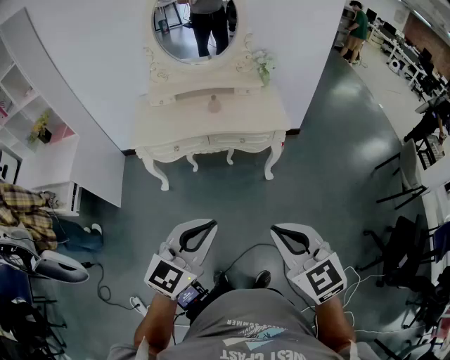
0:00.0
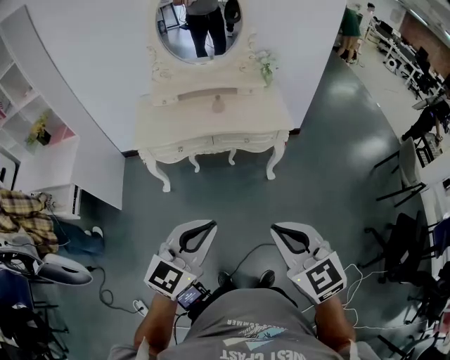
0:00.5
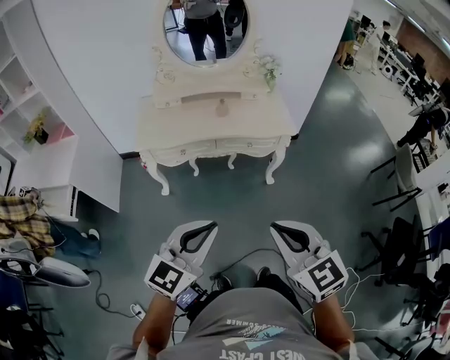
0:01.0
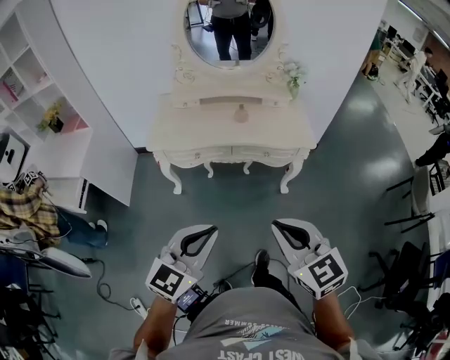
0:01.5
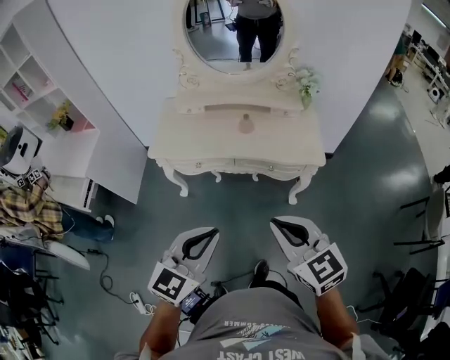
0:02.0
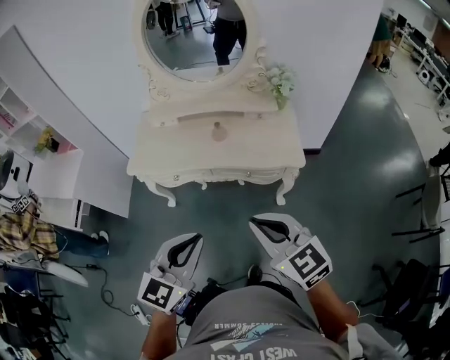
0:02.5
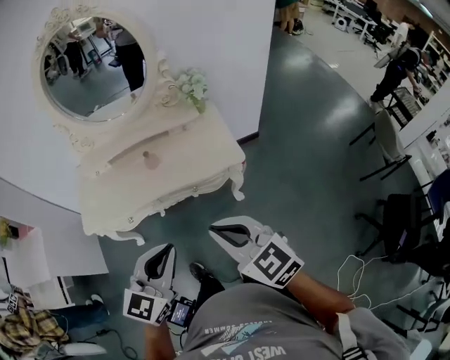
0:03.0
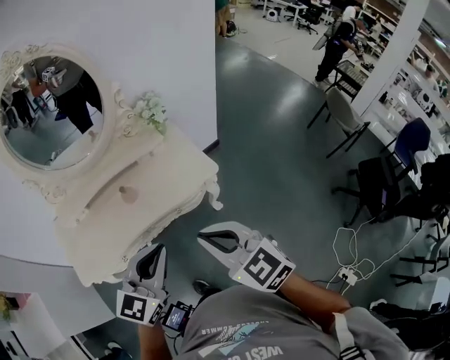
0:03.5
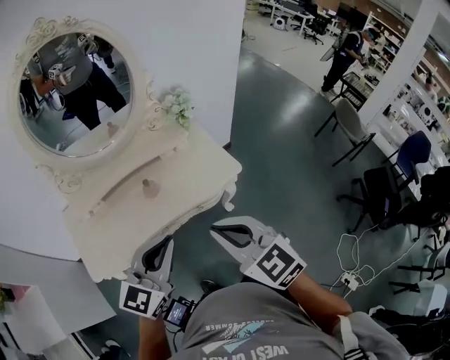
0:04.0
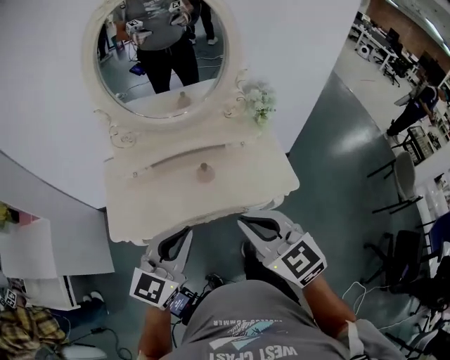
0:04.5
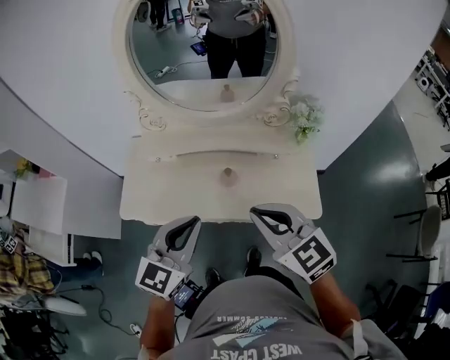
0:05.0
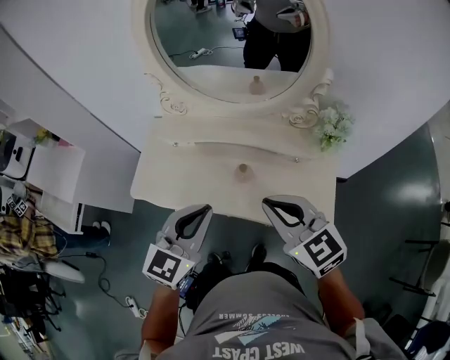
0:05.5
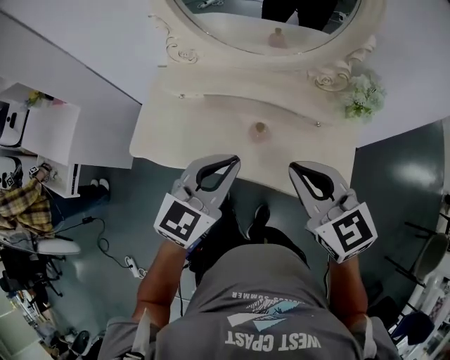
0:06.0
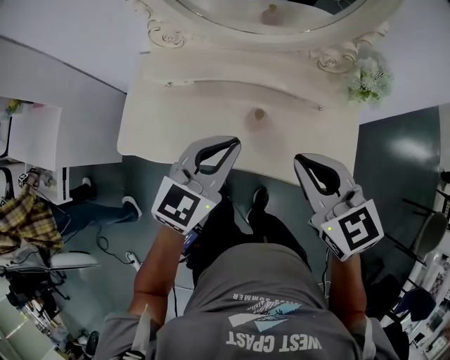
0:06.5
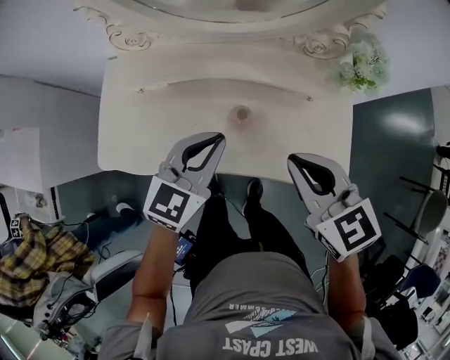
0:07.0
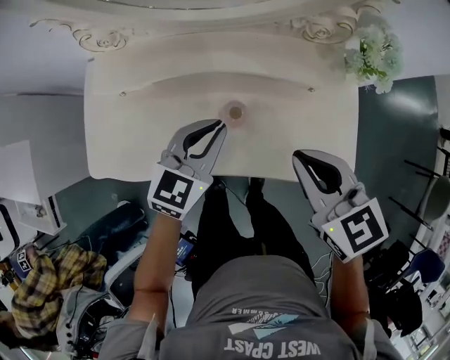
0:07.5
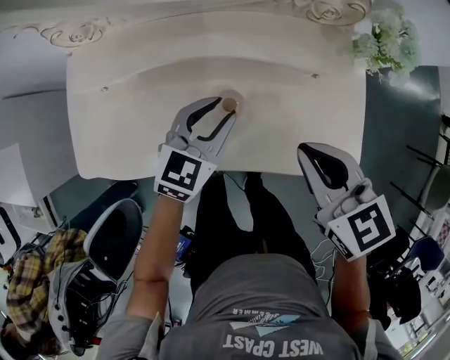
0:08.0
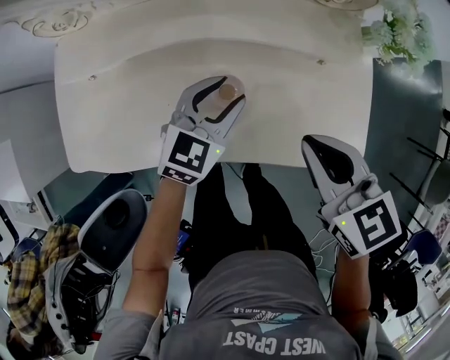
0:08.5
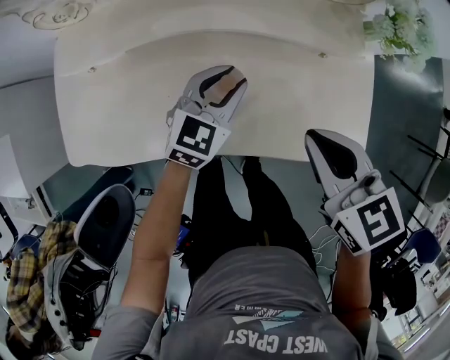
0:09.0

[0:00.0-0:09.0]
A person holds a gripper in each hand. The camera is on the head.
0:00.0 to 0:02.0: The grippers both shift forward by about 20 cm.
0:02.0 to 0:04.5: The left gripper changes place by some 30 cm; the right gripper moves about 30 cm.
0:04.5 to 0:07.0: Both grippers move forward and downward, about 25 cm.
0:07.0 to 0:09.0: The left gripper travels downward and forward by roughly 20 cm, and opens up, while the right gripper shifts about 10 cm downward.

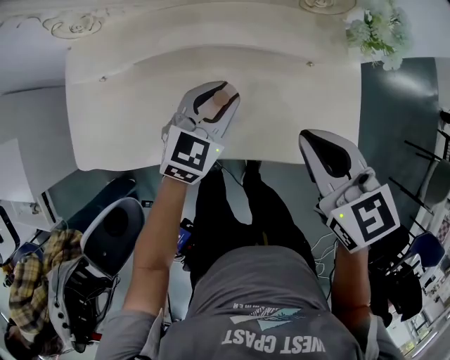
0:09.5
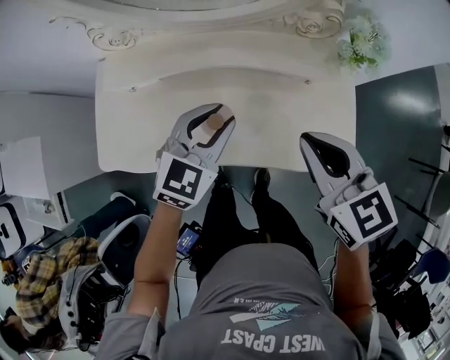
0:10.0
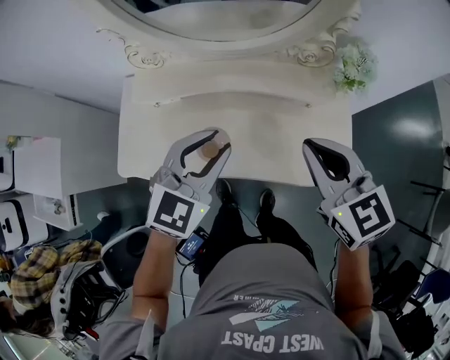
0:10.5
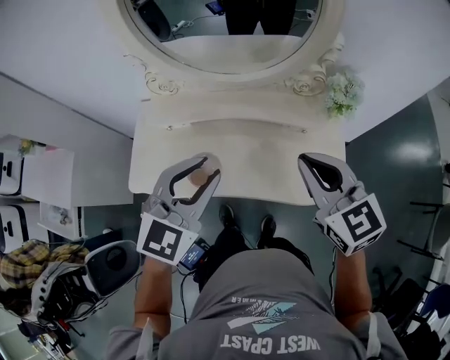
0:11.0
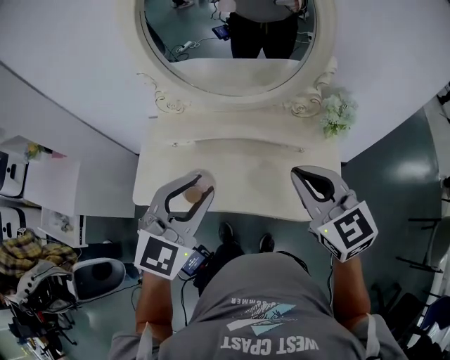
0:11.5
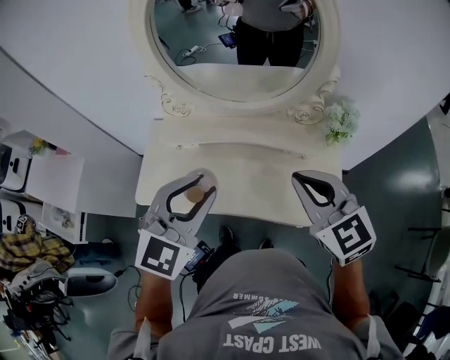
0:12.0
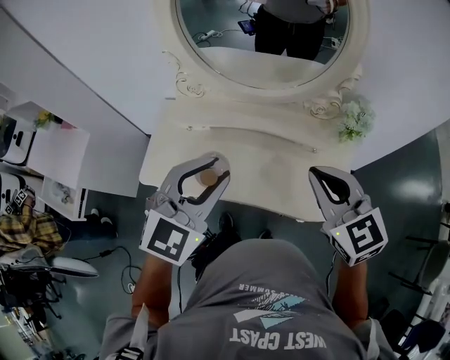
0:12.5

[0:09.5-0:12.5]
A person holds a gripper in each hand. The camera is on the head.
0:09.5 to 0:11.0: The right gripper travels upward by some 20 cm, and changes its angle by some 20 degrees; the left gripper shifts roughly 30 cm upward and backward.
0:11.0 to 0:12.5: The left gripper changes place by approximately 5 cm.

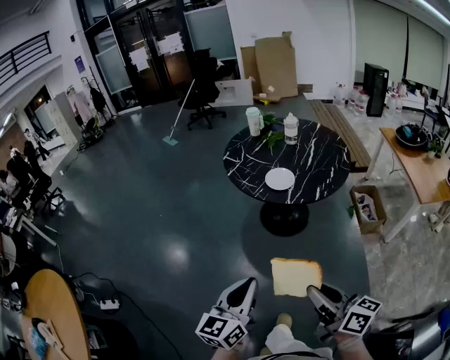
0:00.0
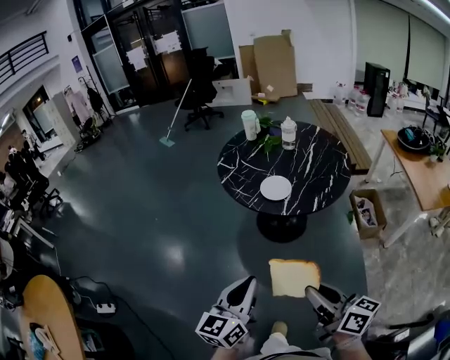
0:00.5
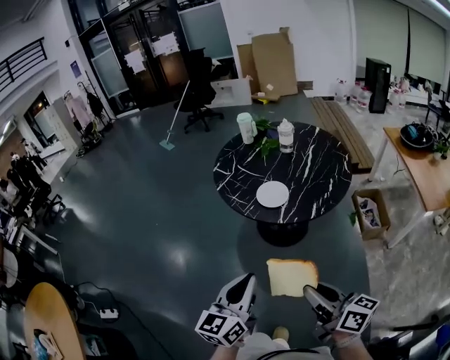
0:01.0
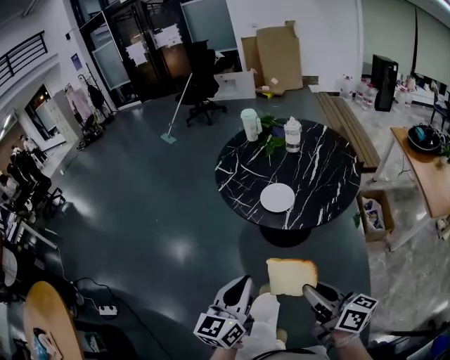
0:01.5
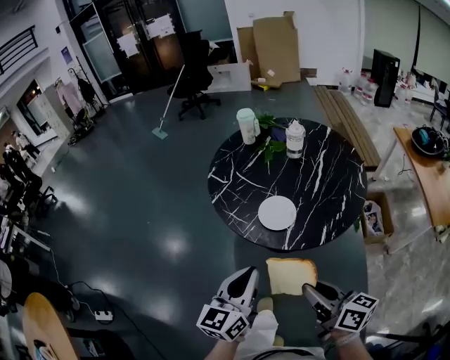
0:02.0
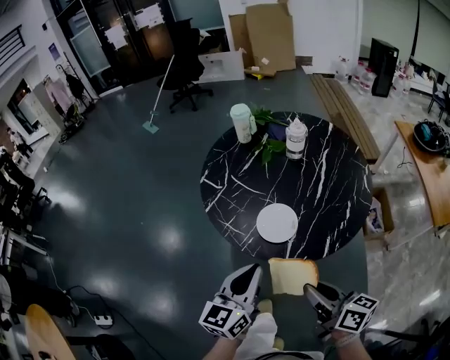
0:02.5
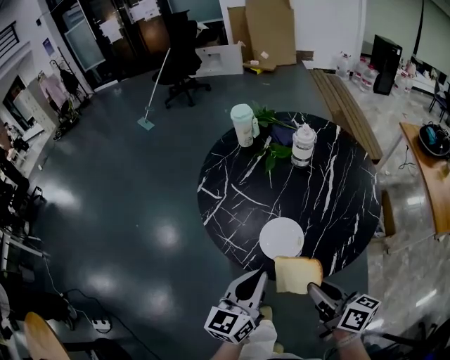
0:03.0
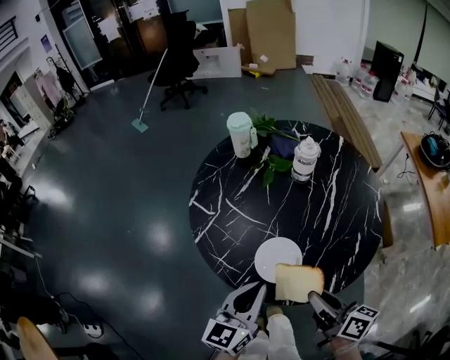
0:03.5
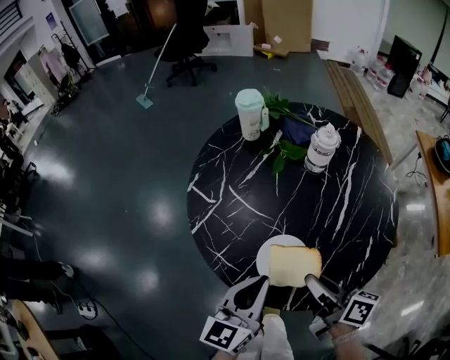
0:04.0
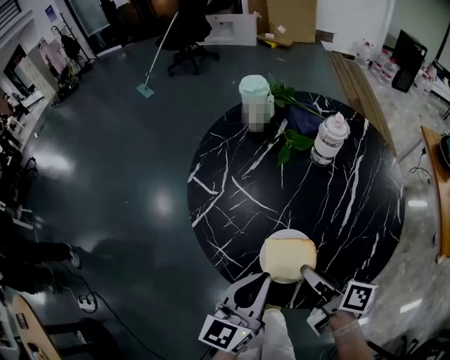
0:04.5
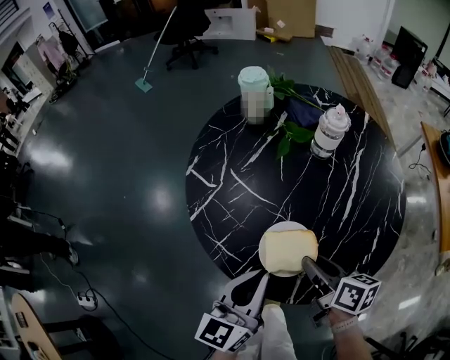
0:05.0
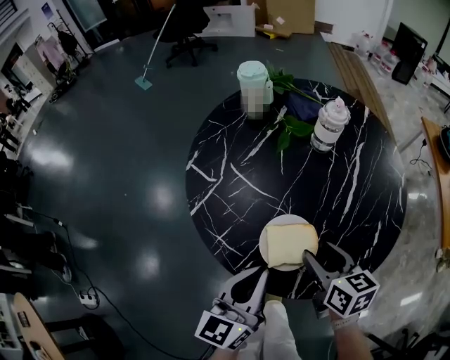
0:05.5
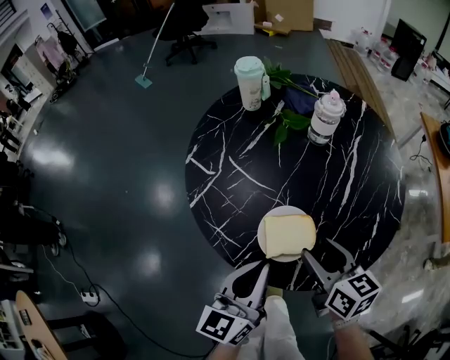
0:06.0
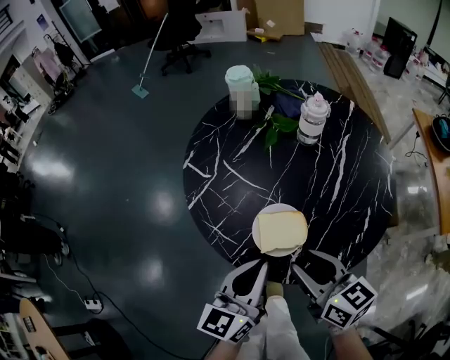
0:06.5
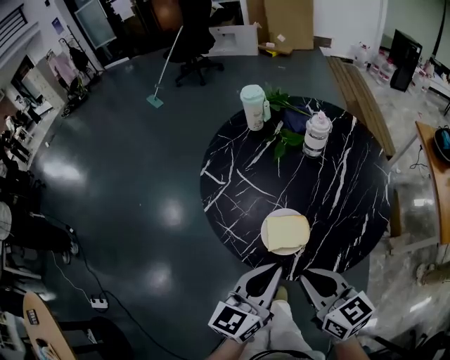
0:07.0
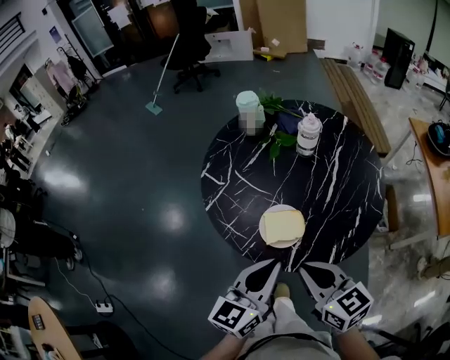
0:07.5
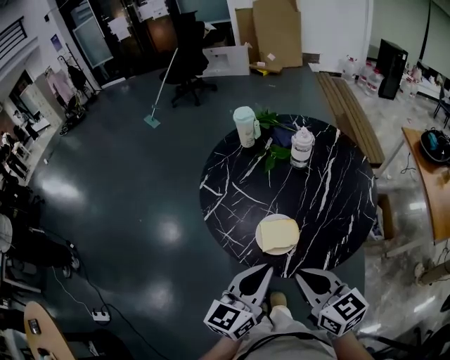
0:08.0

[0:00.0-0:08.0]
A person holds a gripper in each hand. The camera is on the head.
0:00.0 to 0:02.0: Both grippers move forward, roughly 30 cm.
0:02.0 to 0:04.0: The right gripper travels forward by roughly 25 cm, while the left gripper shifts about 25 cm forward and downward.
0:04.0 to 0:06.0: The right gripper swivels roughly 30 degrees, and opens.
0:06.0 to 0:08.0: The grippers both shift upward and backward by some 15 cm. The right gripper closes.

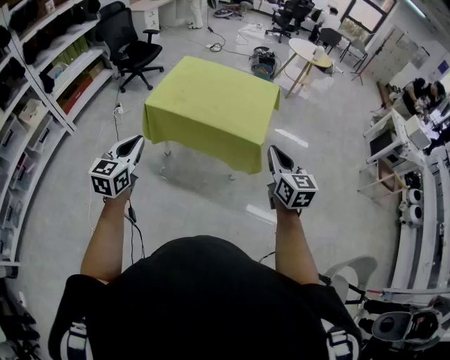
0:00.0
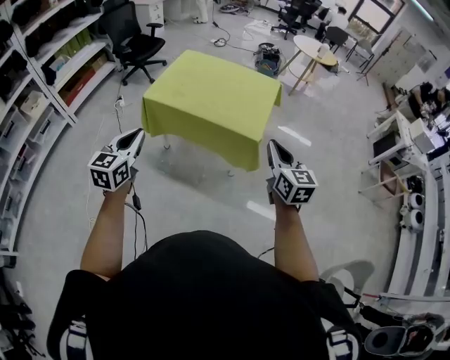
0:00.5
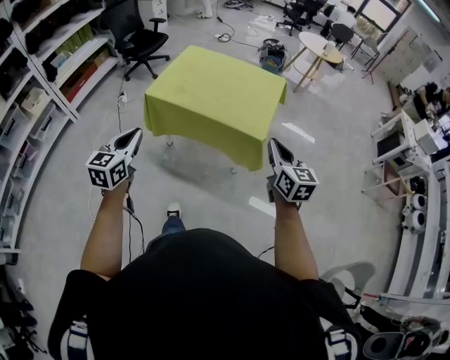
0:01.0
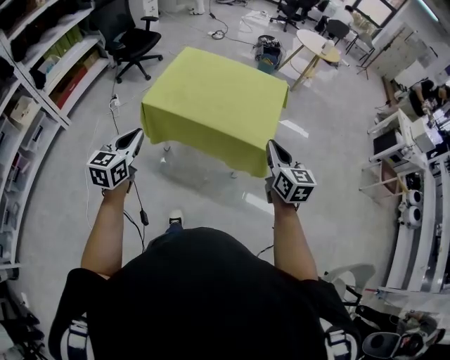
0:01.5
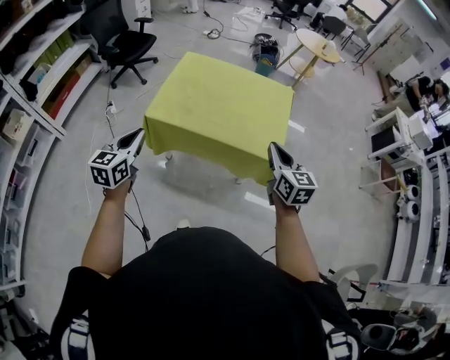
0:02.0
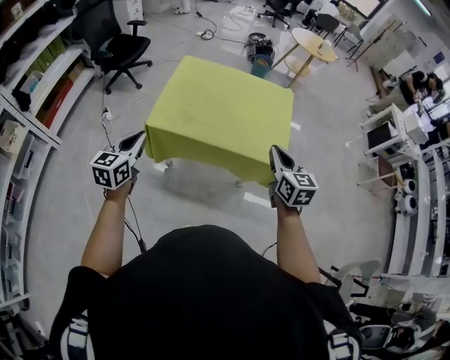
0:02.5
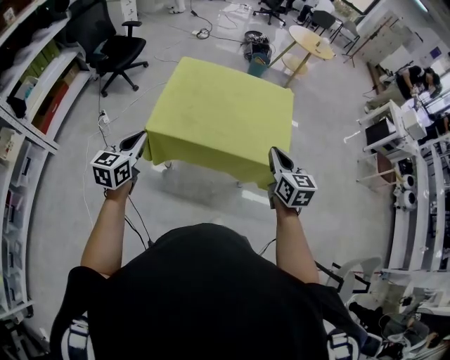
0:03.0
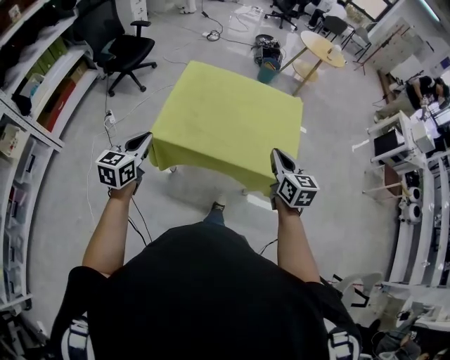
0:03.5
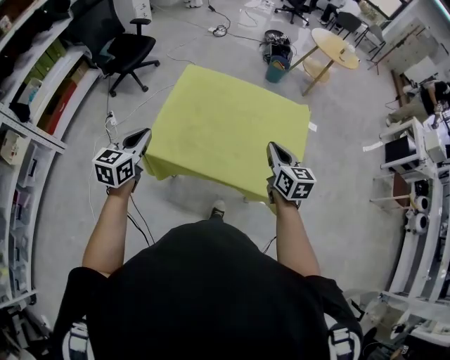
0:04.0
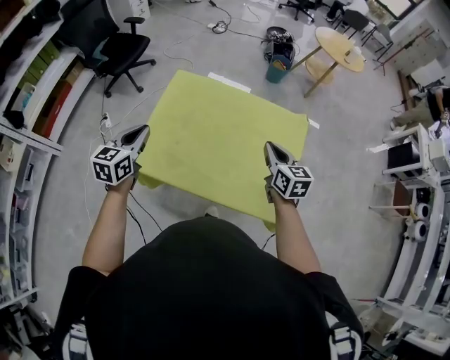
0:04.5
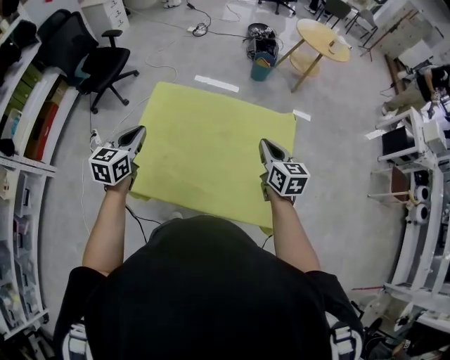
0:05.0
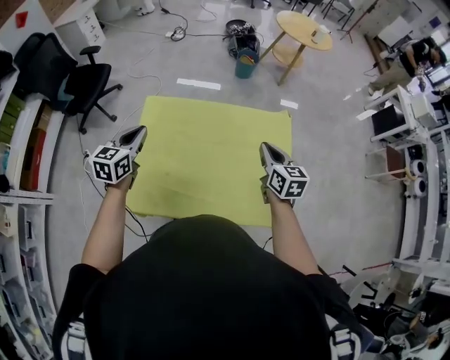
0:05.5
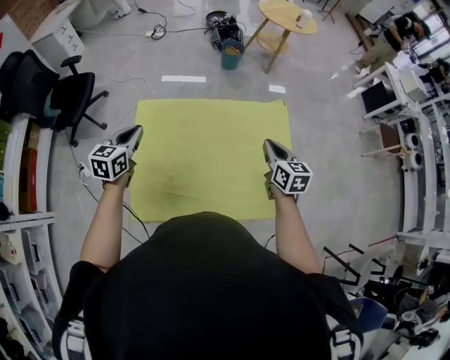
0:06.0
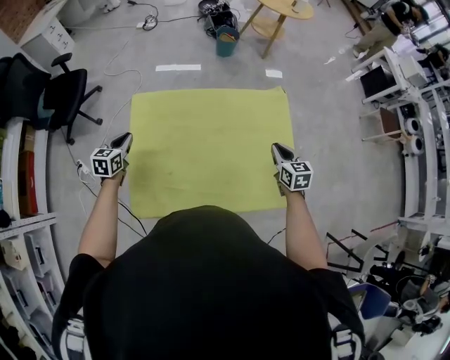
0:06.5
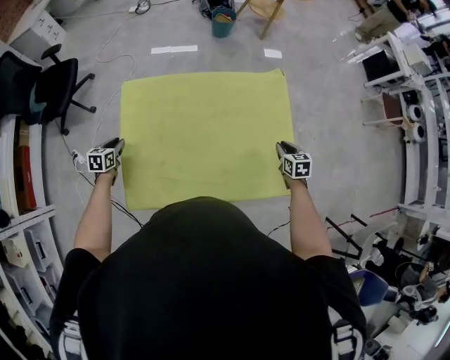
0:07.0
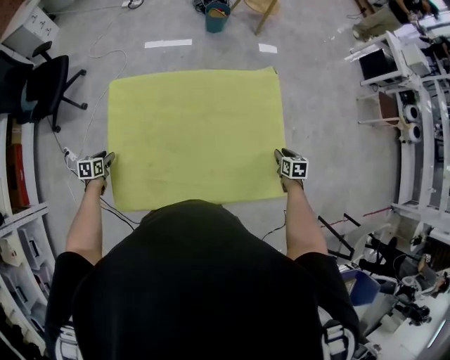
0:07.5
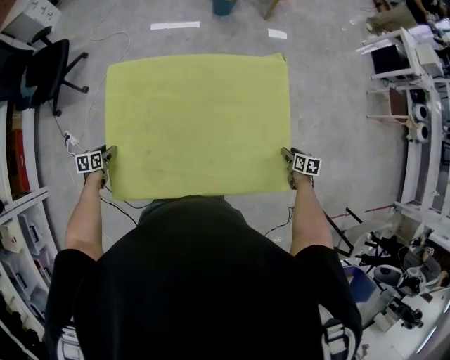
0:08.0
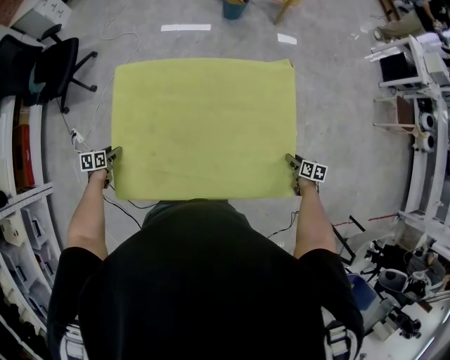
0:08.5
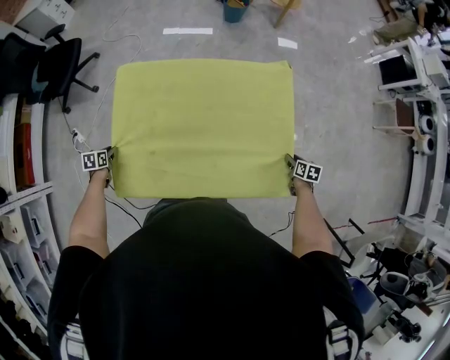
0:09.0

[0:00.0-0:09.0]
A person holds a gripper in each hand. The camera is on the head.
0:00.0 to 0:02.0: Both grippers are carried forward and to the left, about 40 cm.
0:02.0 to 0:04.5: Both grippers are carried forward, about 60 cm.
0:04.5 to 0:07.0: The left gripper heads downward, forward and to the left, covering some 50 cm, and changes its angle by approximately 30 degrees; the right gripper goes approximately 30 cm downward and forward, and swivels approximately 30 degrees.
0:07.0 to 0:09.0: The right gripper travels to the right and downward by approximately 20 cm, and changes its angle by roughly 20 degrees. The left gripper is displaced downward and backward by some 10 cm, swivels roughly 20 degrees, and opens, then closes again.
